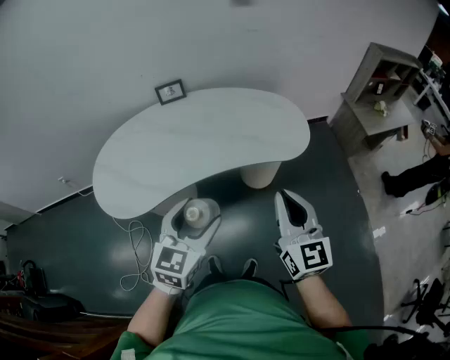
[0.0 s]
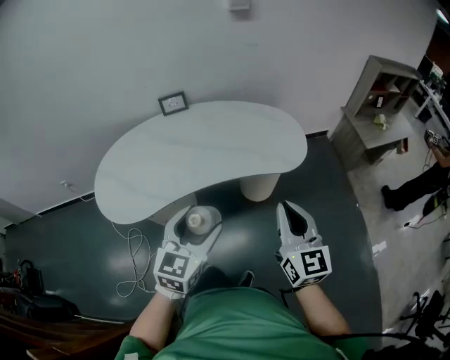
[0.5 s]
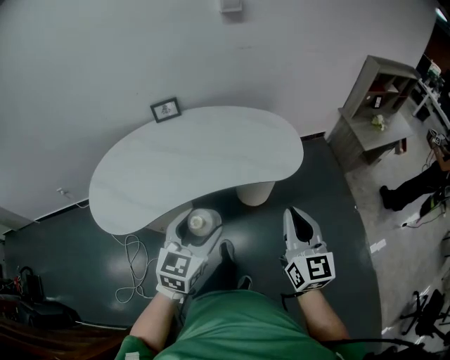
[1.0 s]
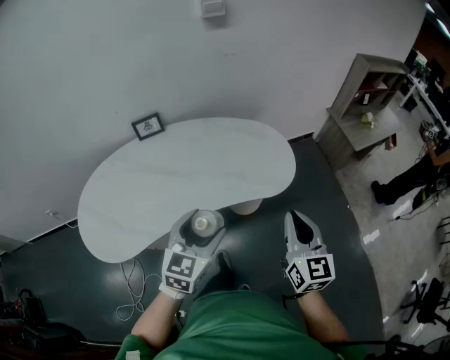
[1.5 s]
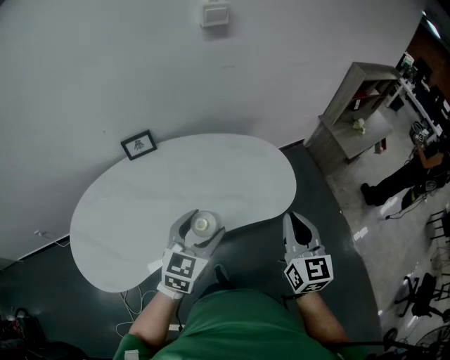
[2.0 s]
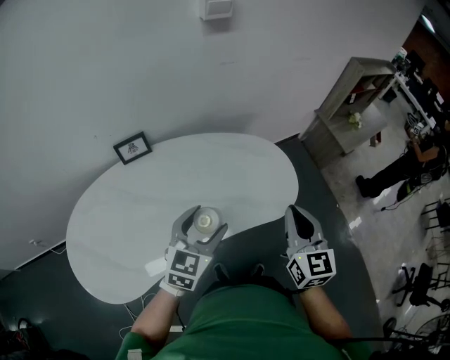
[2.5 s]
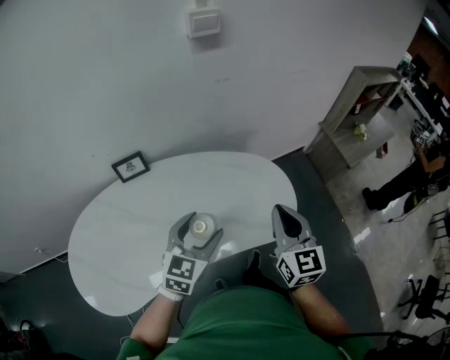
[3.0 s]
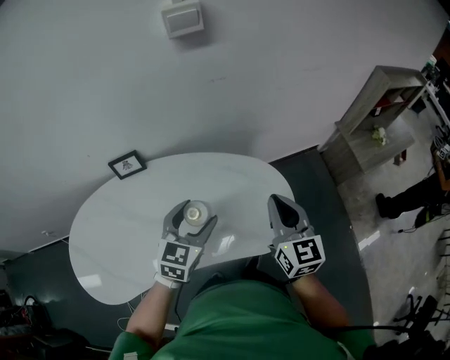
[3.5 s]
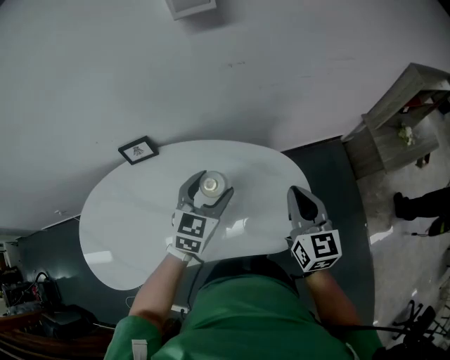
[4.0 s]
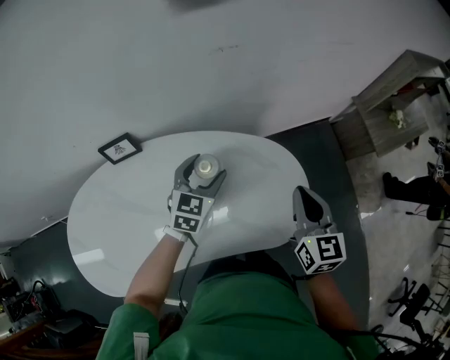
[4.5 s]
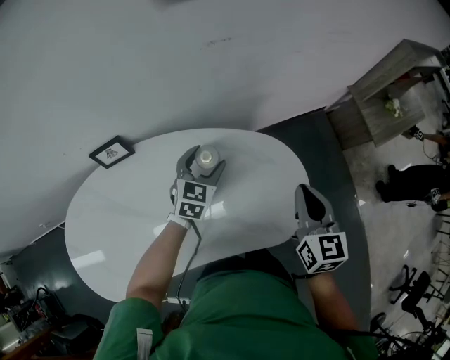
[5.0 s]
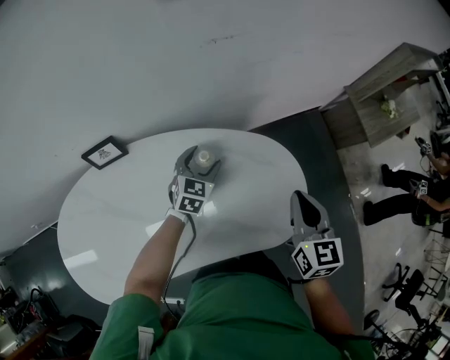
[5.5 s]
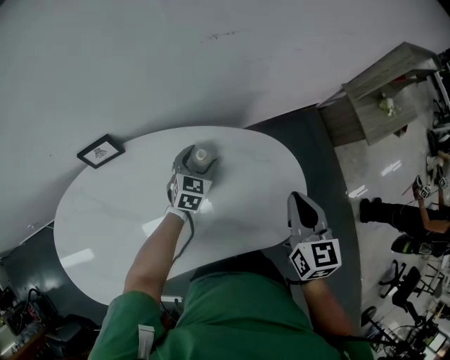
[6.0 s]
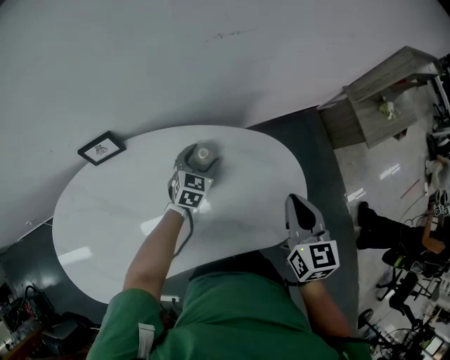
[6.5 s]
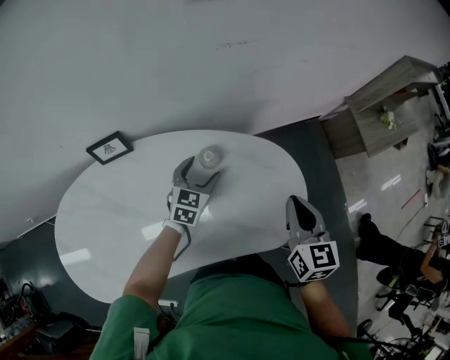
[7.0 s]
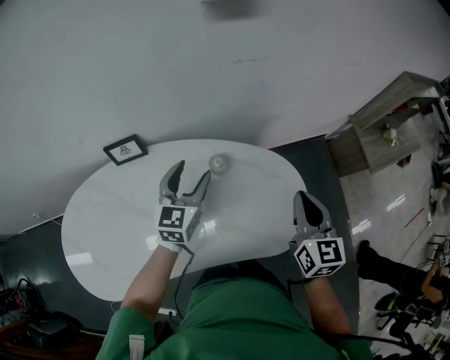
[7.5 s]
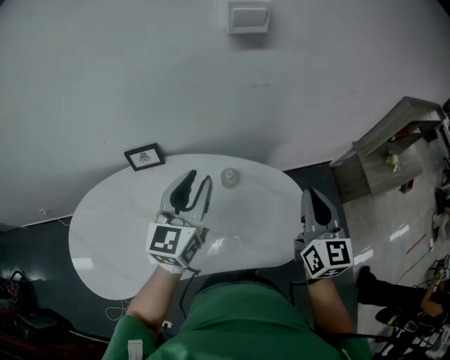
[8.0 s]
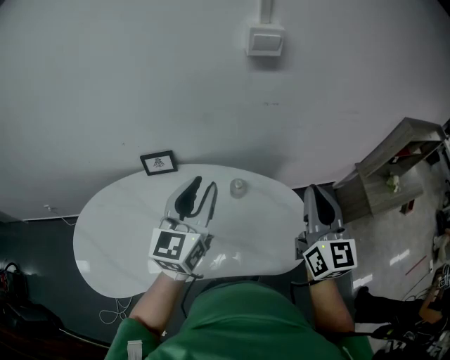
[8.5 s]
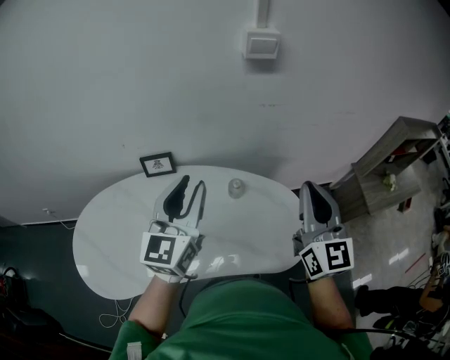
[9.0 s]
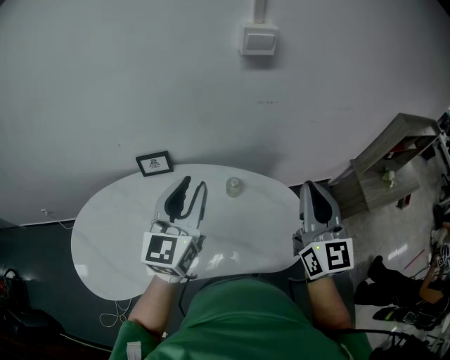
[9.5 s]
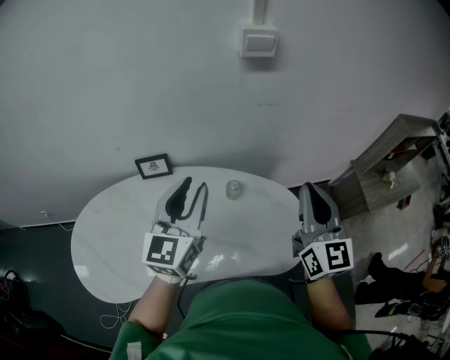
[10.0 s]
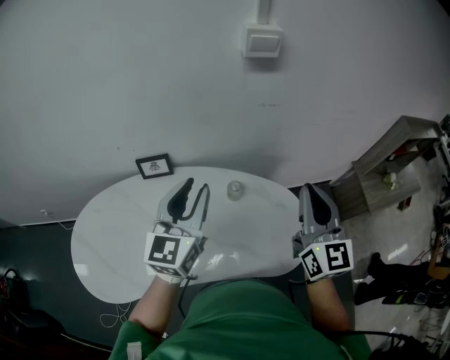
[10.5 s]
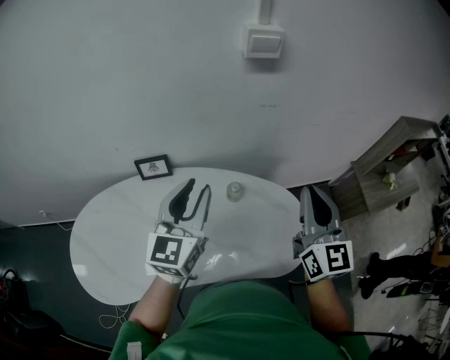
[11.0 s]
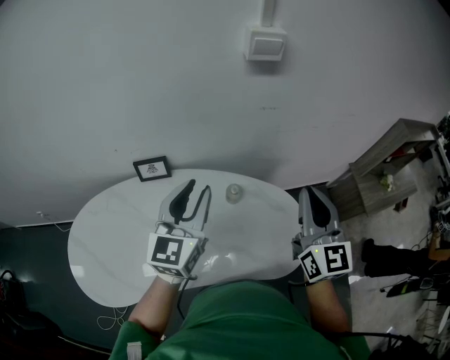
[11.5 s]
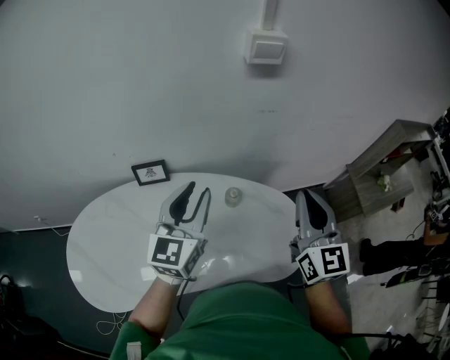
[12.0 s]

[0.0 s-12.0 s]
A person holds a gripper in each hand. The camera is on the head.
0.0 to 2.0 s: Both grippers travel together forward, roughly 20 cm.
2.0 to 4.0 s: The two grippers go roughly 30 cm forward.
4.0 to 6.0 s: The left gripper travels downward and forward by some 25 cm. The right gripper heads downward, covering about 5 cm.
6.0 to 8.0 s: The right gripper moves upward, some 15 cm, and swivels some 20 degrees; the left gripper goes about 35 cm upward, angles its fingers upward, by about 30 degrees, and closes.
8.0 to 10.0 s: The two grippers go some 5 cm upward.
10.0 to 12.0 s: The grippers stay close to where they were, moving slightly.

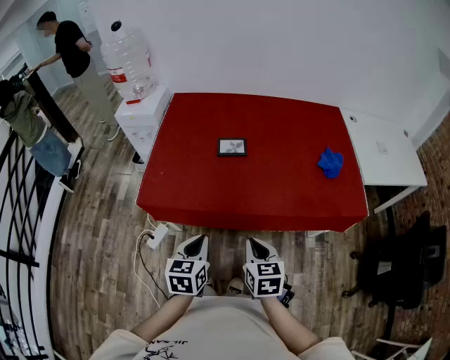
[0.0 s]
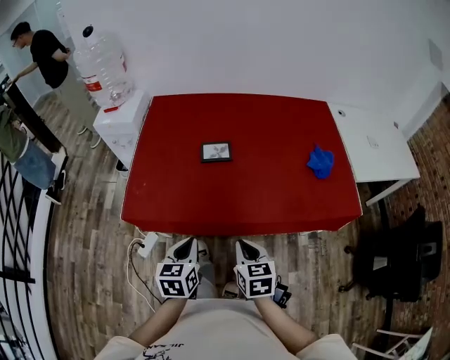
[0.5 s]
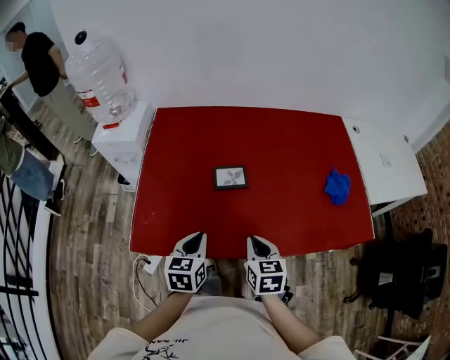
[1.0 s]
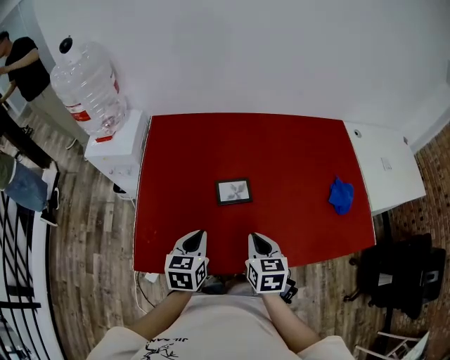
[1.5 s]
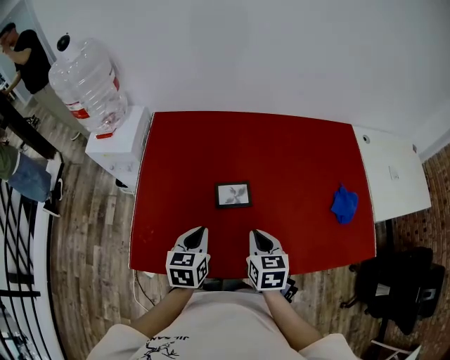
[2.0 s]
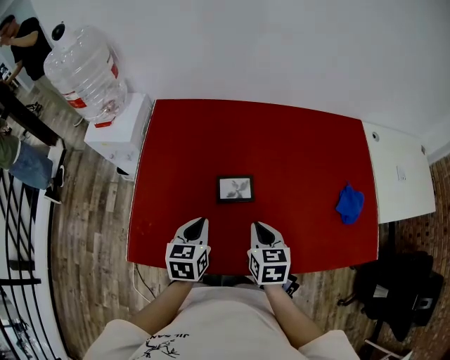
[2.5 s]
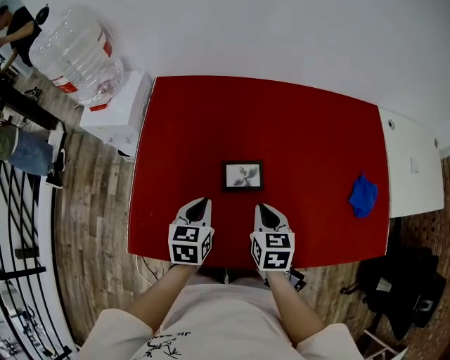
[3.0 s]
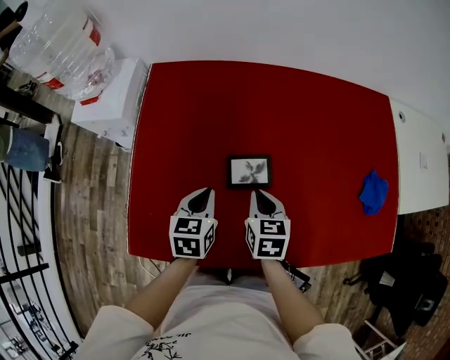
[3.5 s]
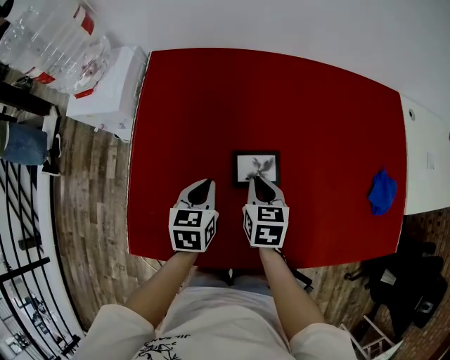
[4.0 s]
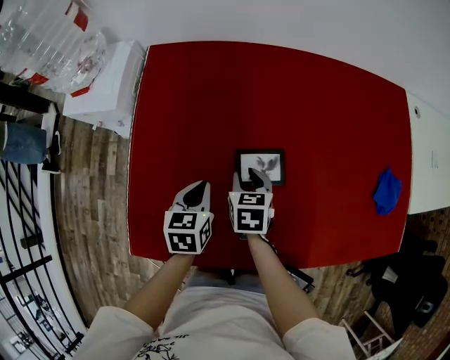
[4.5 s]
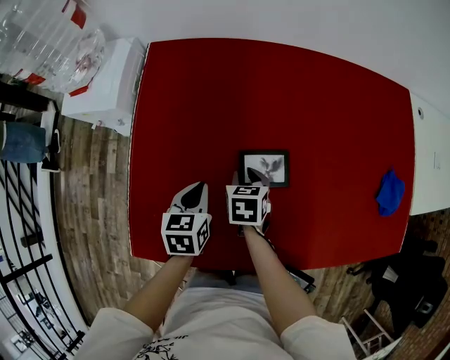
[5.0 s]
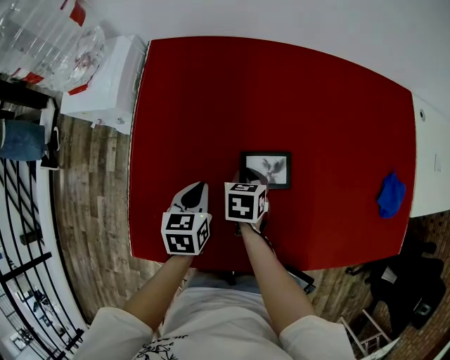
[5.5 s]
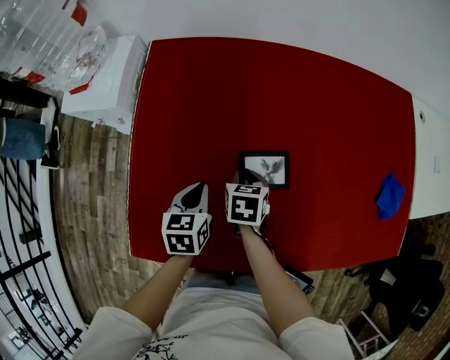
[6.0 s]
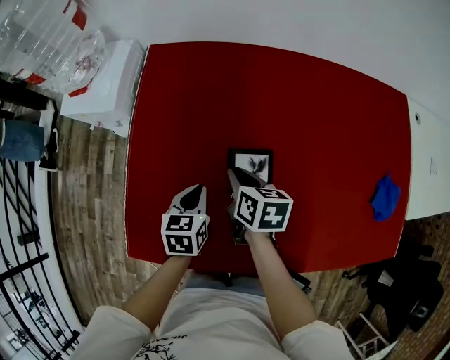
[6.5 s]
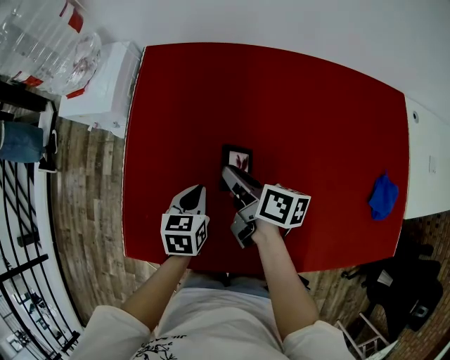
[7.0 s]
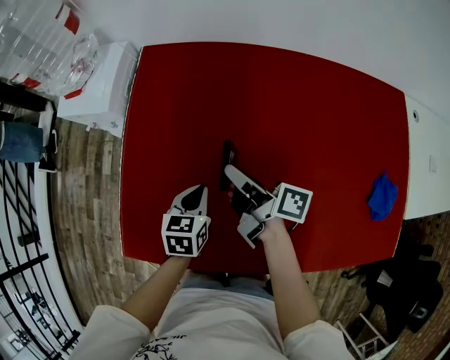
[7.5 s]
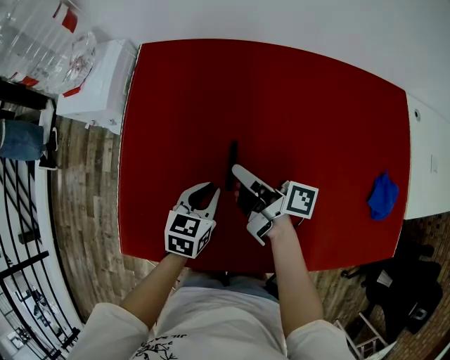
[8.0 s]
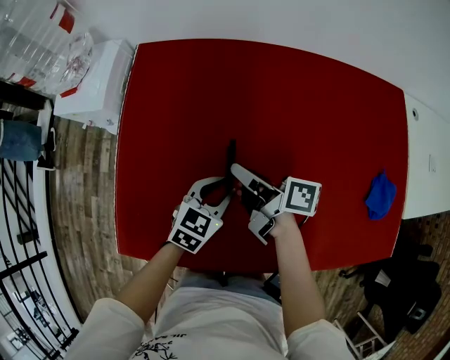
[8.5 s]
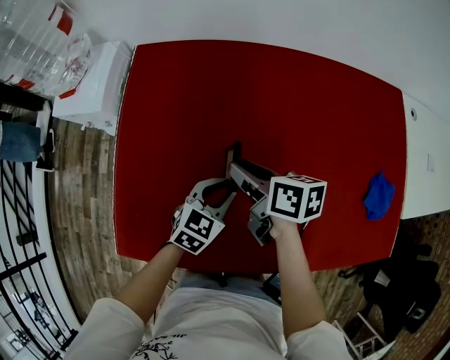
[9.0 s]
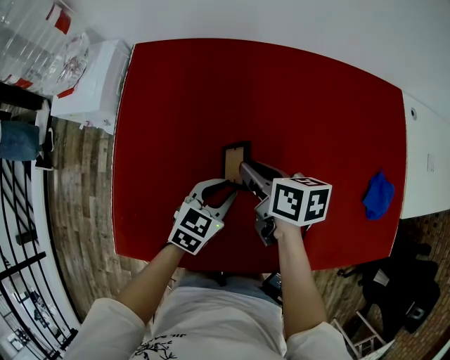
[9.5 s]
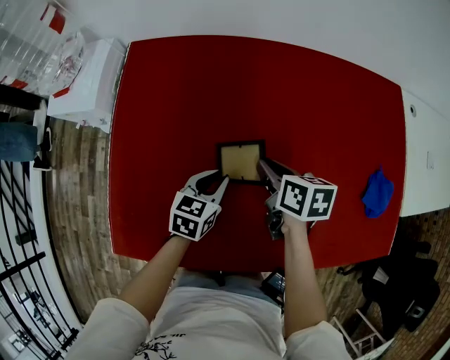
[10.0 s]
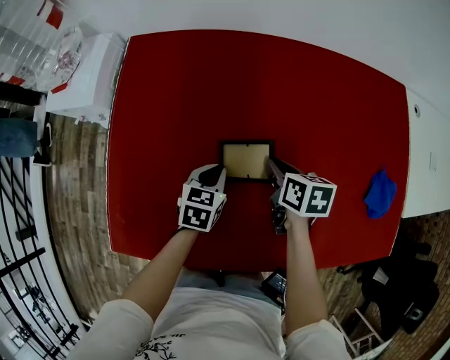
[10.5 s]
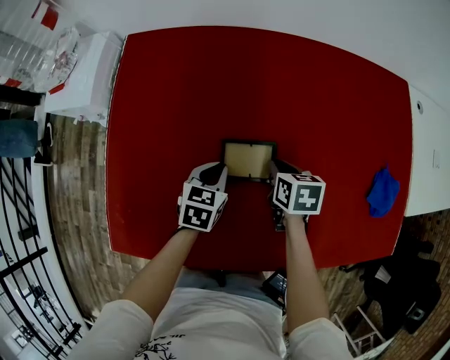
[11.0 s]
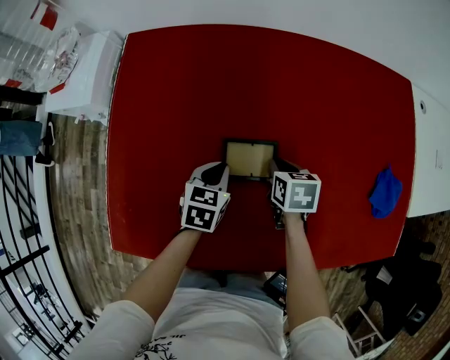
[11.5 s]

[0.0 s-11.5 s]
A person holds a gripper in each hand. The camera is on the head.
0.0 to 2.0 s: The grippers both shift forward by some 35 cm.
2.0 to 4.0 s: The right gripper shifts about 20 cm forward, downward and to the left; the left gripper travels forward and downward by roughly 15 cm.
4.0 to 6.0 s: The right gripper is displaced downward and to the left by about 10 cm; the left gripper shifts by about 5 cm.
6.0 to 7.5 s: The right gripper moves upward, some 15 cm, and angles its fingers upward, by some 50 degrees.
7.5 to 9.5 s: The left gripper goes about 10 cm to the right, changes its angle by some 30 degrees, and opens up. The right gripper is displaced to the right by about 5 cm, and angles its fingers downward, by approximately 30 degrees.
9.5 to 11.5 s: The left gripper moves downward, about 5 cm, and swivels about 20 degrees. Meanwhile the right gripper is displaced downward and to the right by approximately 15 cm, and changes its angle by approximately 30 degrees.

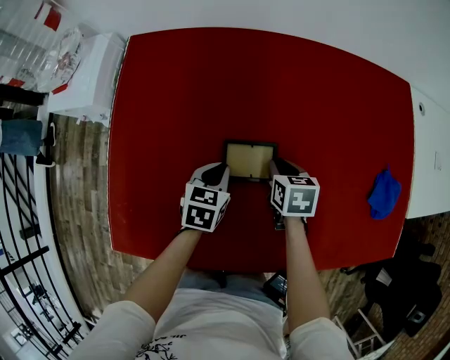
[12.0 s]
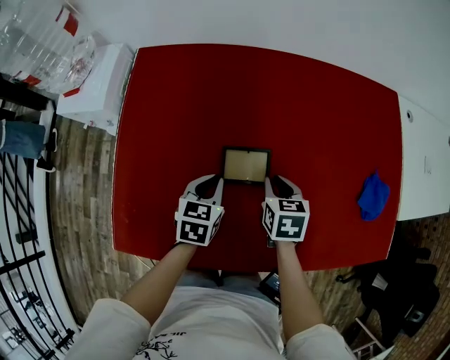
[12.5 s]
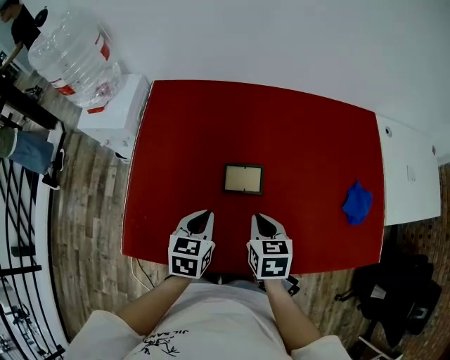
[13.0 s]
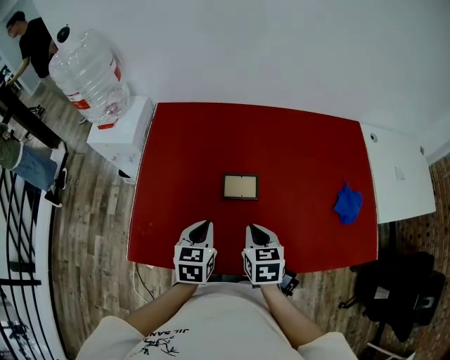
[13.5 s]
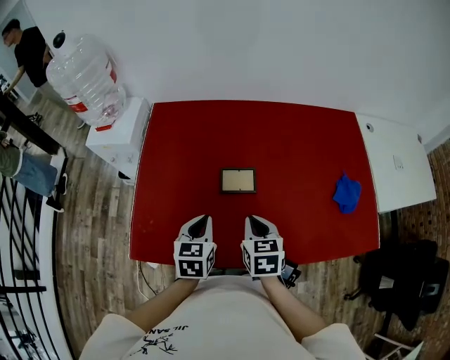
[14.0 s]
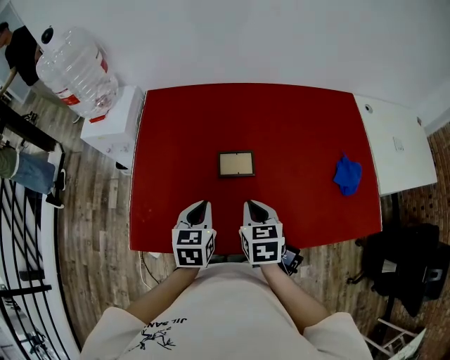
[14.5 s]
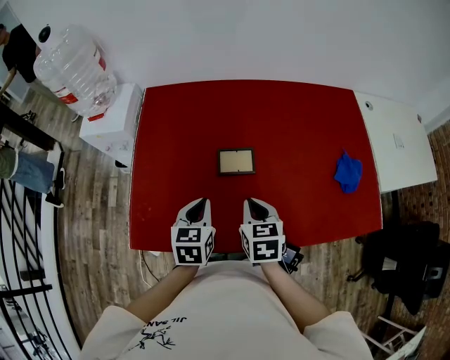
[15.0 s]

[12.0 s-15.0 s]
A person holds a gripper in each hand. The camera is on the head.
12.0 to 13.5 s: The left gripper shifts some 25 cm upward and backward; the right gripper moves backward and upward, roughly 25 cm.
13.5 to 15.0 s: Both grippers stay about where they are.
